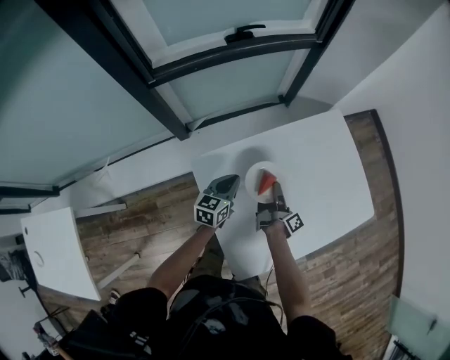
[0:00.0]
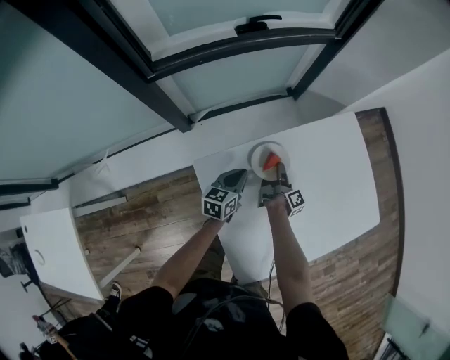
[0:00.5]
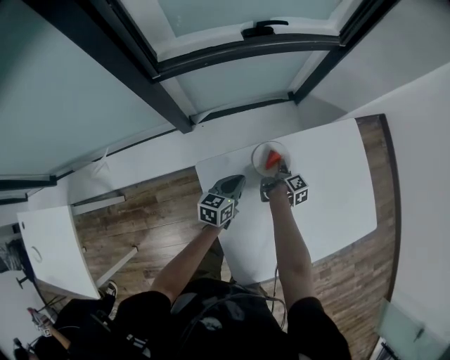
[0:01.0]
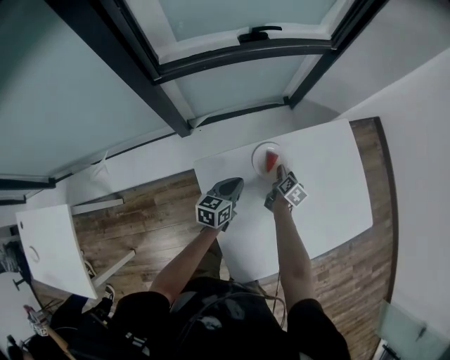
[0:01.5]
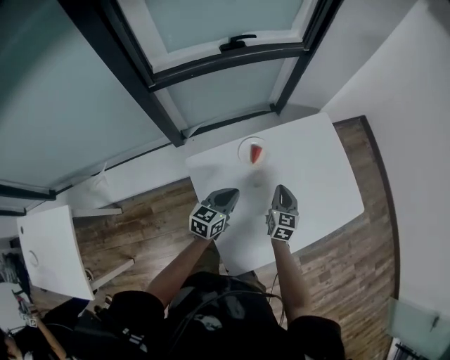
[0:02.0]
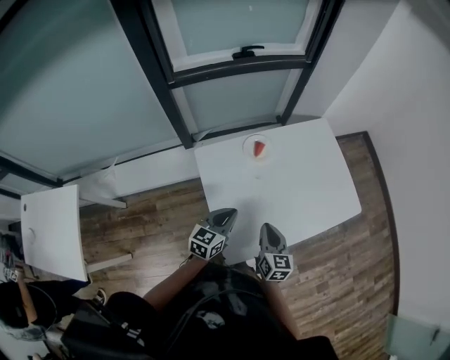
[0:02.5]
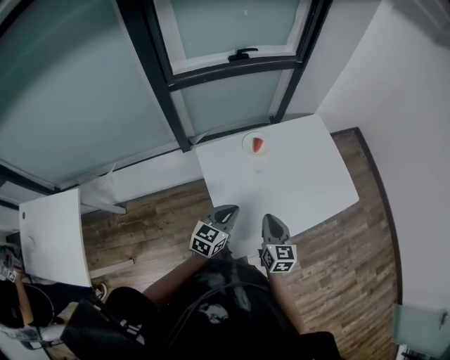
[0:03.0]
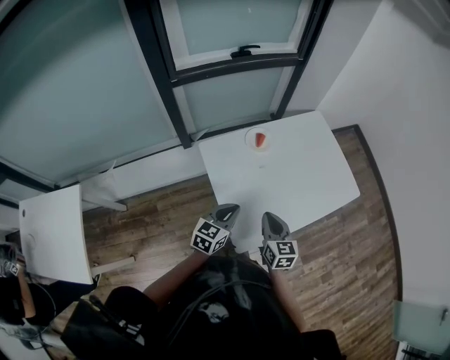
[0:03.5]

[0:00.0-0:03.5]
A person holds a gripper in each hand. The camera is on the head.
0:00.0 to 0:02.0: The left gripper changes place by some 10 cm.
0:02.0 to 0:03.5: The left gripper changes place by about 20 cm.

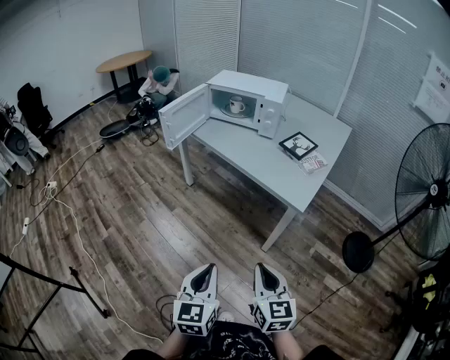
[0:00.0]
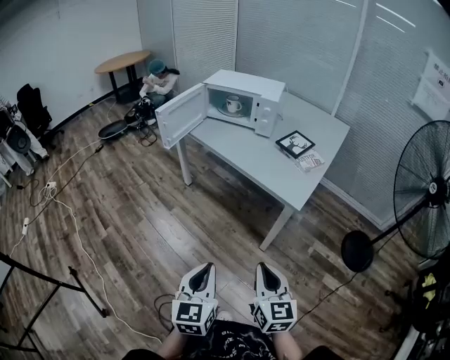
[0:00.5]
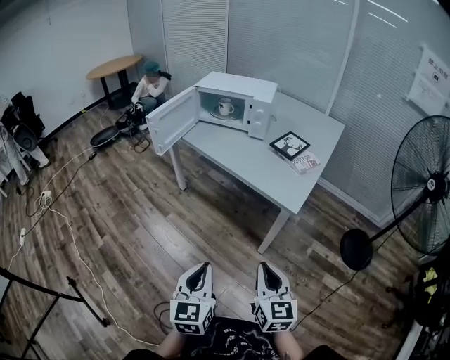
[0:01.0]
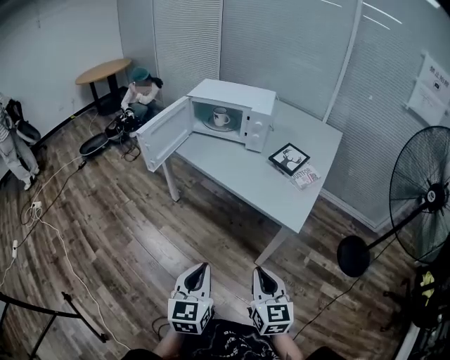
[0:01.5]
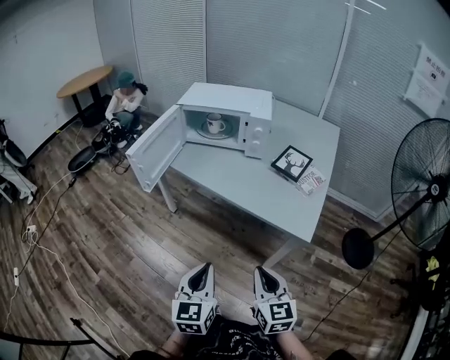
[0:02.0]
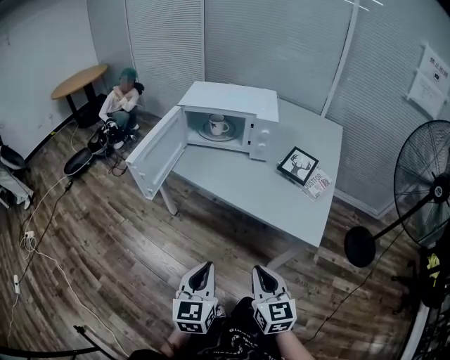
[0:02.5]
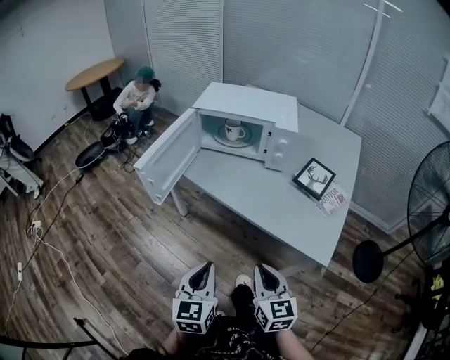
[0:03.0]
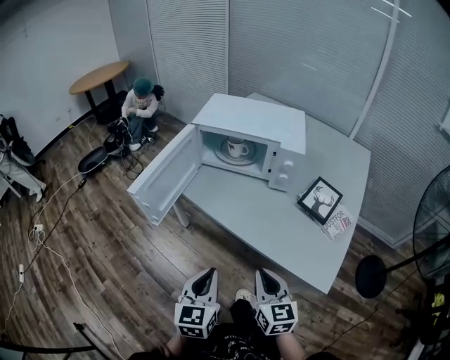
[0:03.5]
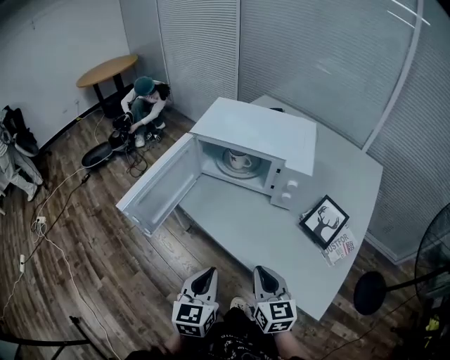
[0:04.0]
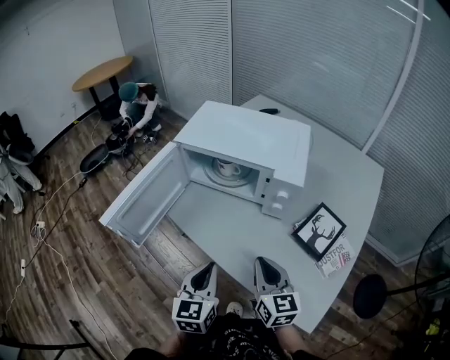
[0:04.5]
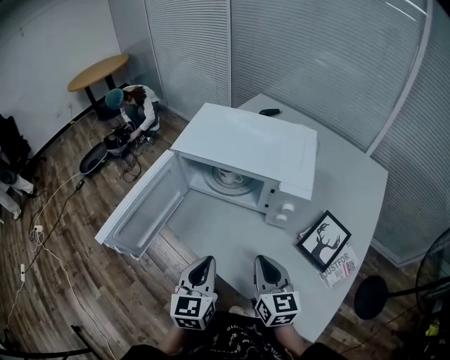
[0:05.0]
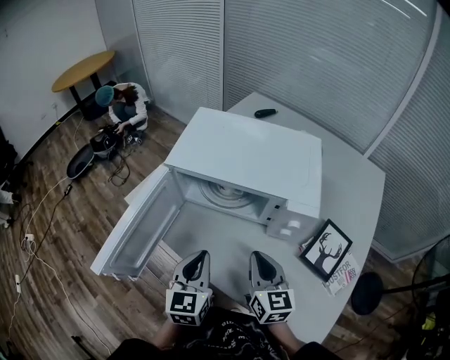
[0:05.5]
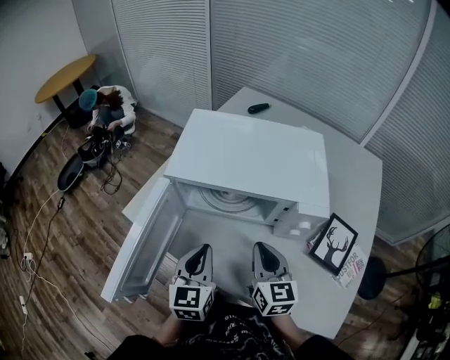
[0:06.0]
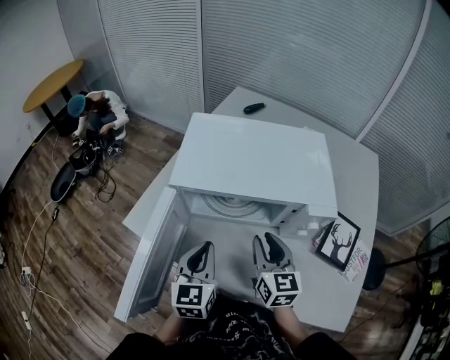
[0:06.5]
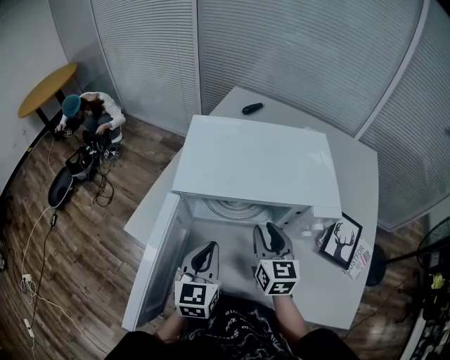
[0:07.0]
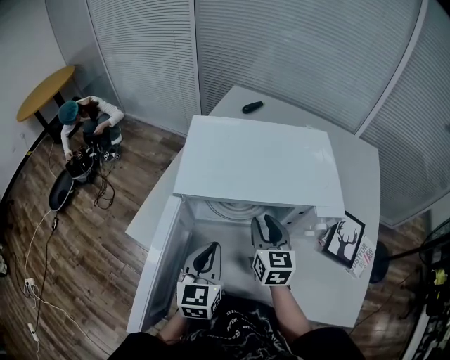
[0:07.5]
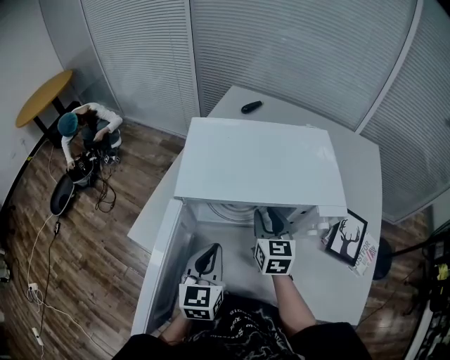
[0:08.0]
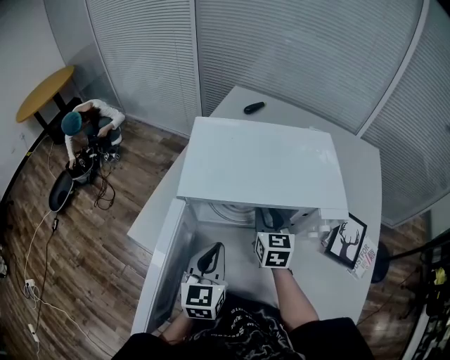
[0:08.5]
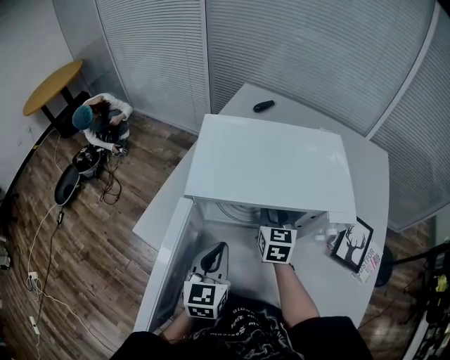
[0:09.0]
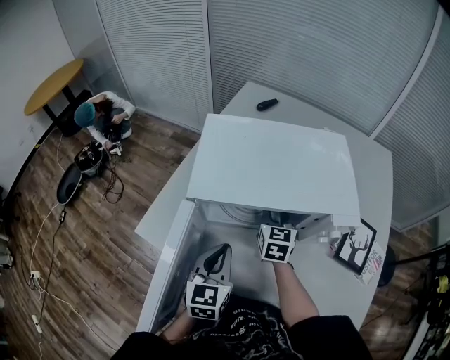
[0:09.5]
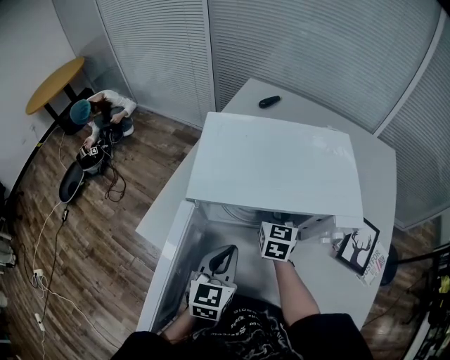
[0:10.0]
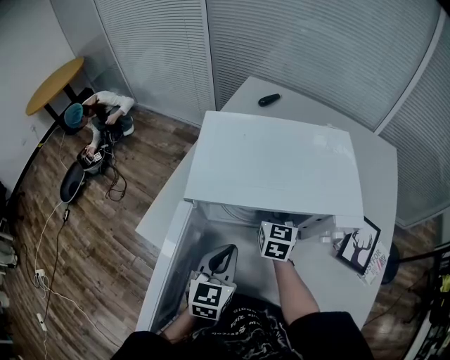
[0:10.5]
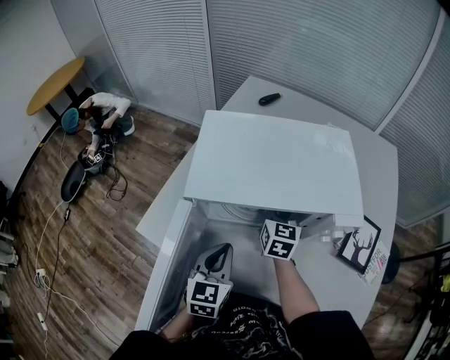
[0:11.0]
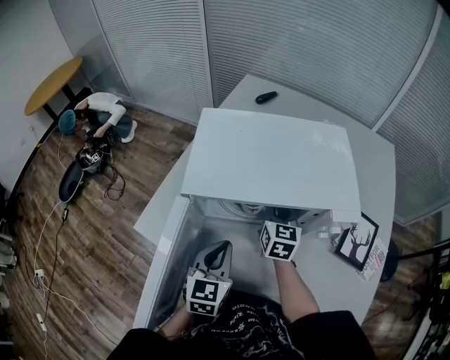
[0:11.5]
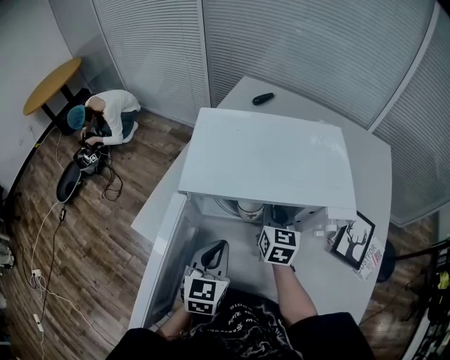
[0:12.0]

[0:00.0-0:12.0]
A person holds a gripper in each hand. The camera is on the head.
0:00.0 to 0:02.0: The grippers both shift forward by approximately 20 cm.
0:02.0 to 0:04.0: Both grippers travel together forward, approximately 25 cm.
0:04.0 to 0:06.0: The two grippers go some 25 cm forward.
0:06.0 to 0:08.0: The left gripper shifts by about 5 cm, while the right gripper shifts roughly 15 cm forward, and opens its fingers.
0:08.0 to 0:10.0: The right gripper shifts some 5 cm forward.
0:10.0 to 0:12.0: The grippers make only small movements.

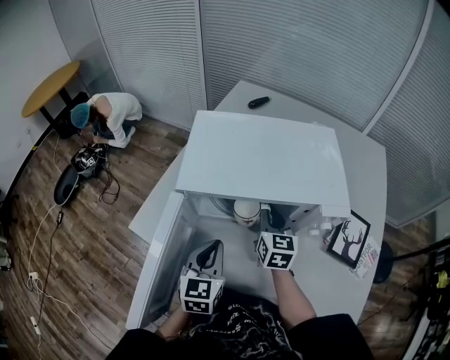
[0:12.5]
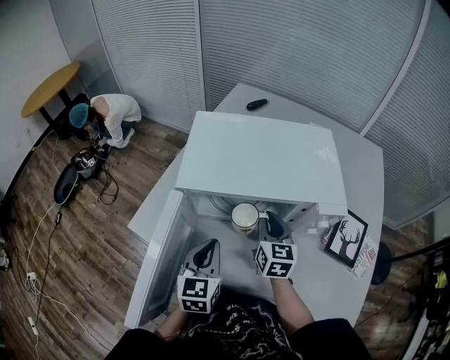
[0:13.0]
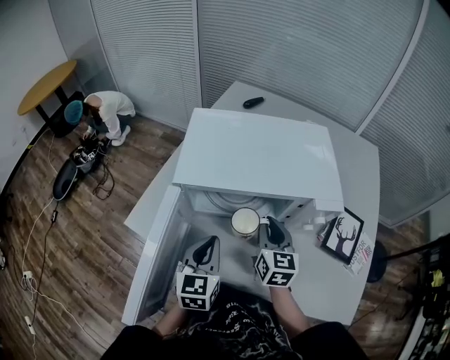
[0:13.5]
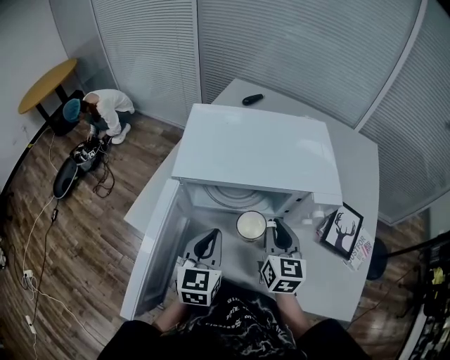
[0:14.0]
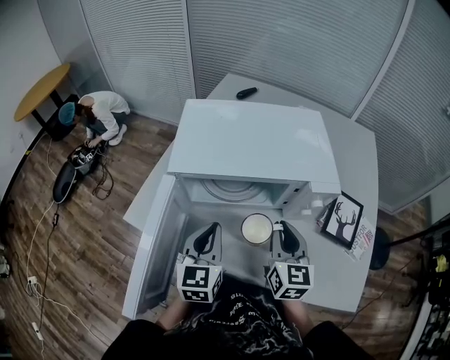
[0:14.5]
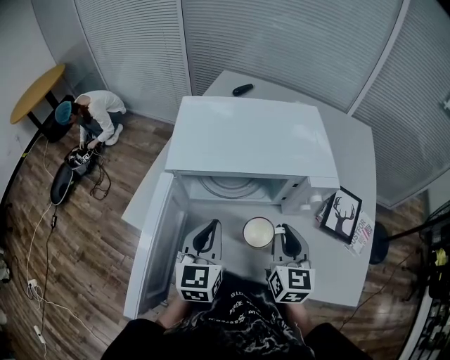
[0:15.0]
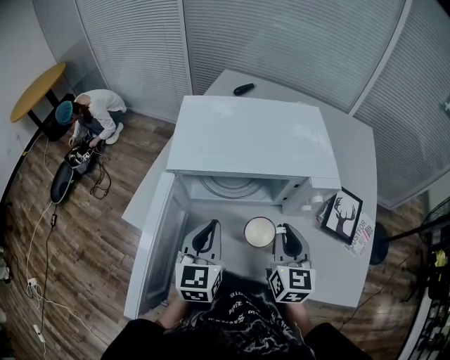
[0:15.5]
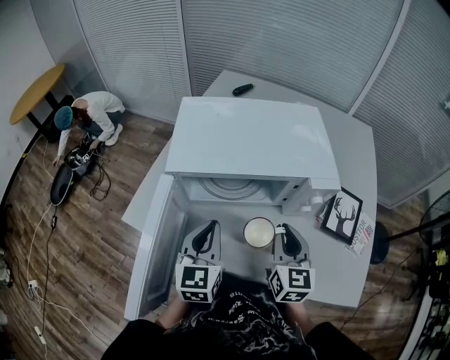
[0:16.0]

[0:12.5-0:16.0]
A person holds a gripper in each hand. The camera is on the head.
0:12.5 to 0:14.5: The right gripper shifts some 15 cm backward, to the right and upward.
0:14.5 to 0:16.0: The grippers stay close to where they were, moving slightly.

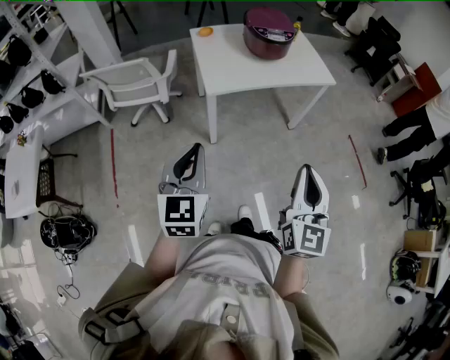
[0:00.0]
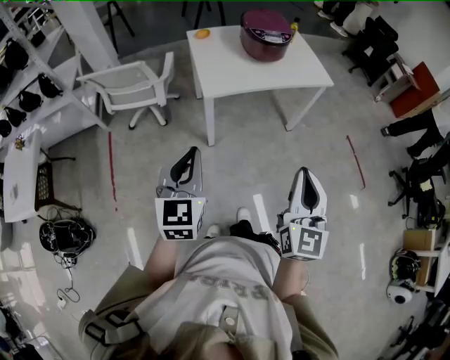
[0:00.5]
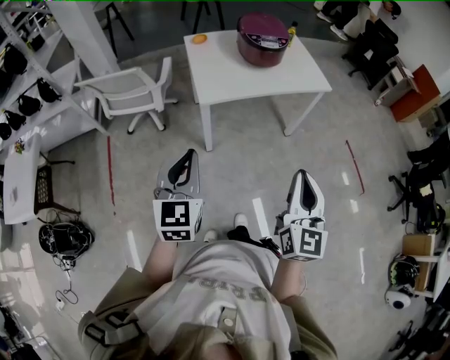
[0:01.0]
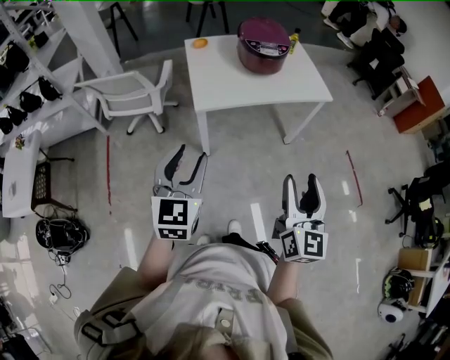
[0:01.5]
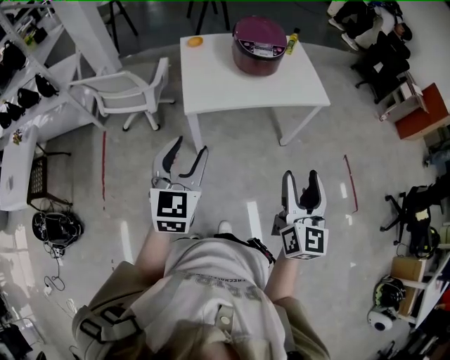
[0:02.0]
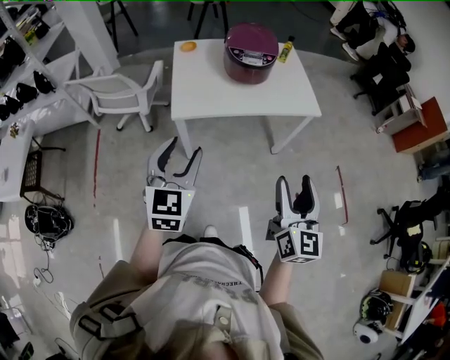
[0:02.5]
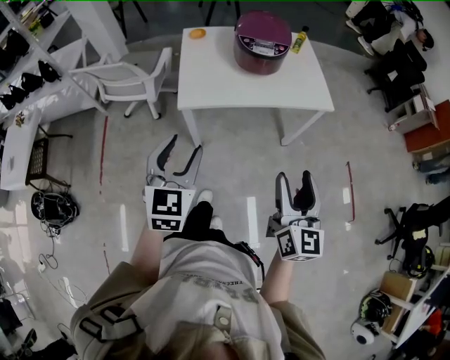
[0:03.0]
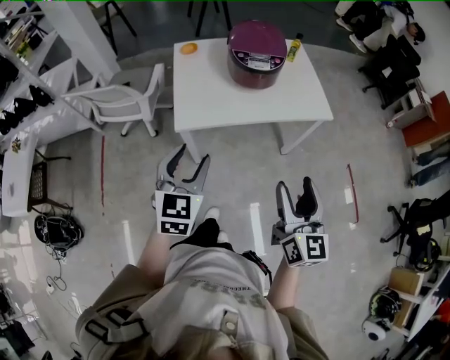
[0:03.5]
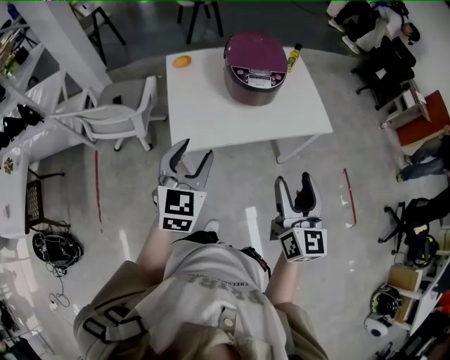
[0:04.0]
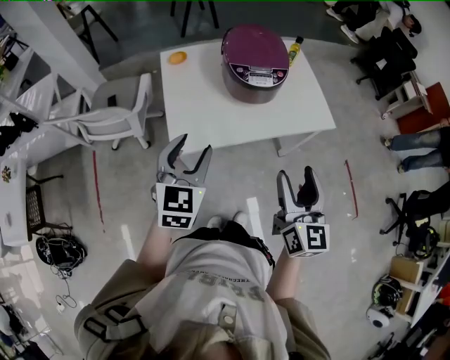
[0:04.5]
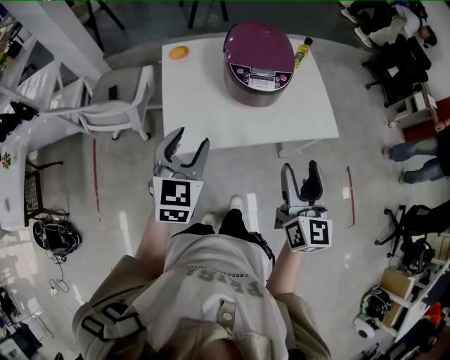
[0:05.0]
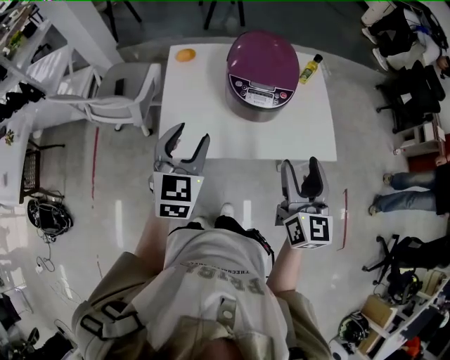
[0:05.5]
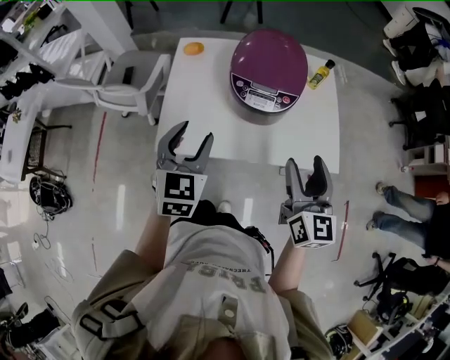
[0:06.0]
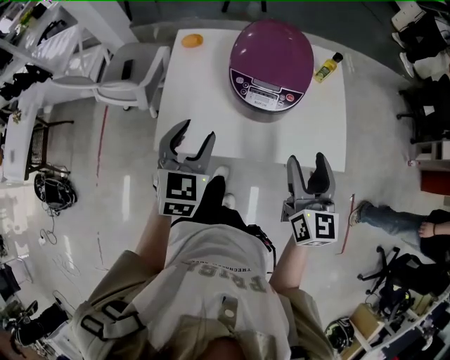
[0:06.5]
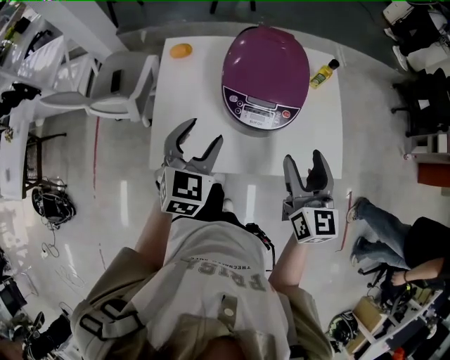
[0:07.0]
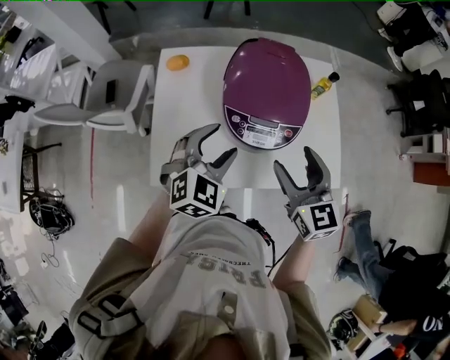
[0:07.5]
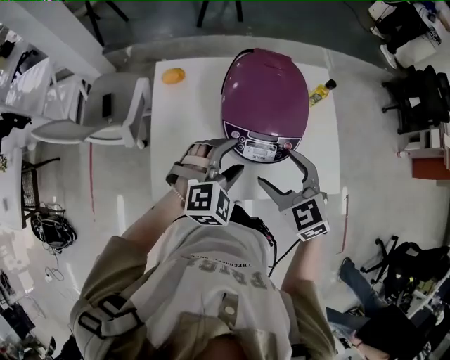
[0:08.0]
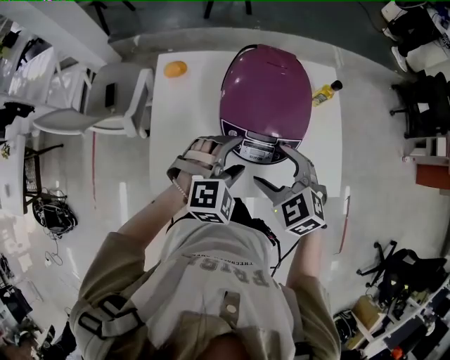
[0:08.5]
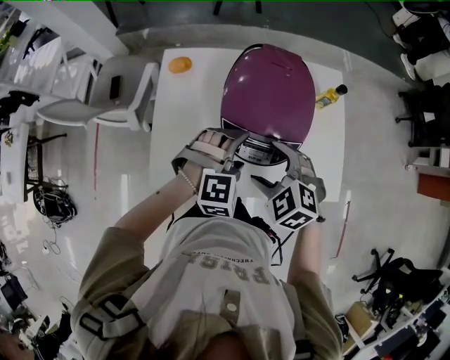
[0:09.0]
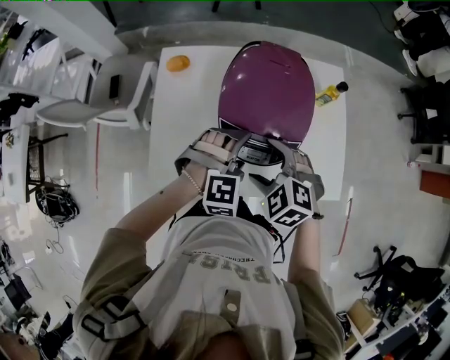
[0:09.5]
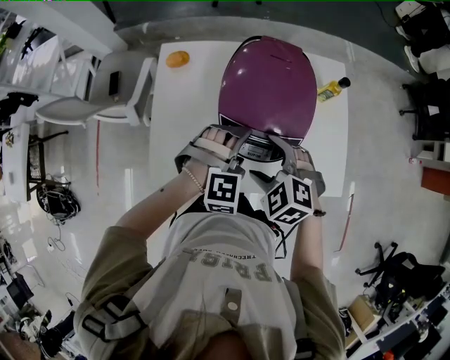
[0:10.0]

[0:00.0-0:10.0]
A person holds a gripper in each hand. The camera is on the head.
0:00.0 to 0:02.0: Both grippers travel together forward and to the right, approximately 15 cm. The right gripper opens; the left gripper opens up.
0:02.0 to 0:04.0: The grippers both shift forward by approximately 20 cm.
0:04.0 to 0:06.0: Both grippers travel together forward and to the right, approximately 20 cm.
0:06.0 to 0:08.0: The right gripper shifts approximately 20 cm forward, to the left and downward, and rotates approximately 50 degrees, while the left gripper heads forward, to the right and downward, covering approximately 20 cm, and changes its angle by about 60 degrees.
0:08.0 to 0:10.0: Both grippers move downward, about 5 cm. The left gripper rotates roughly 20 degrees; the right gripper swivels some 30 degrees.
